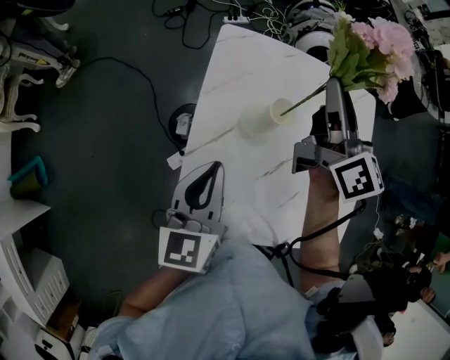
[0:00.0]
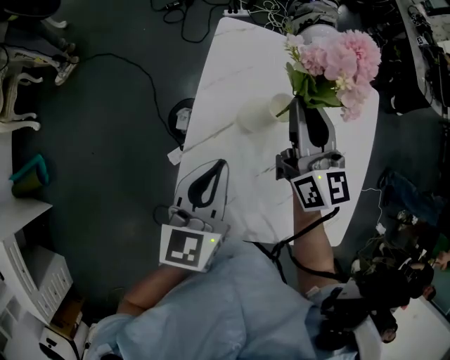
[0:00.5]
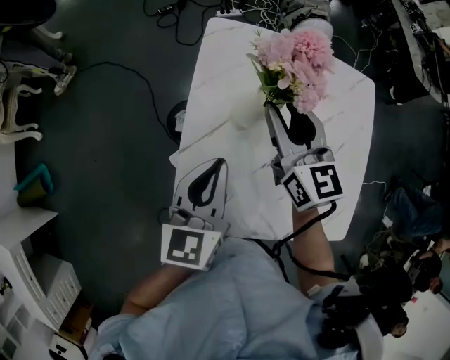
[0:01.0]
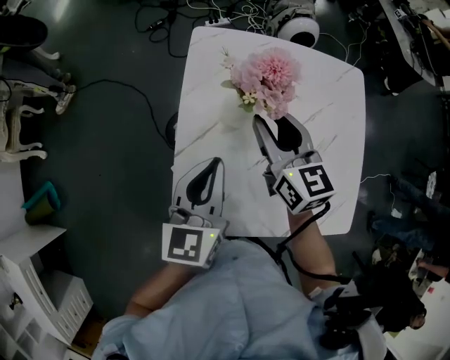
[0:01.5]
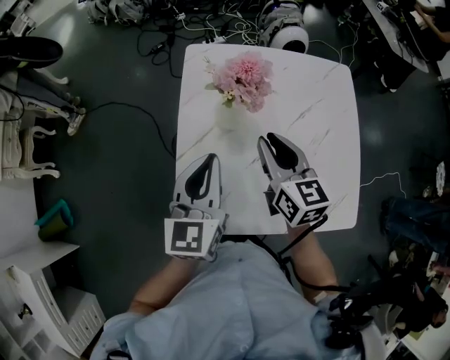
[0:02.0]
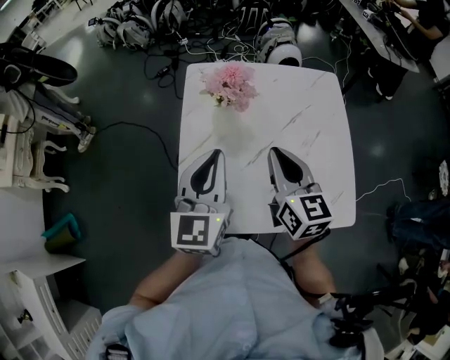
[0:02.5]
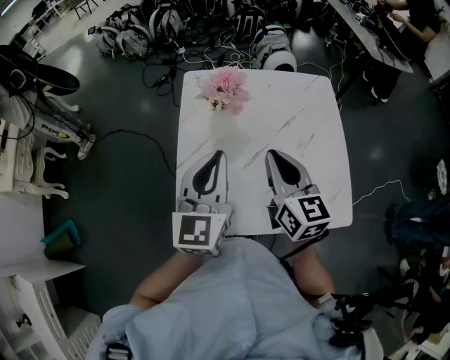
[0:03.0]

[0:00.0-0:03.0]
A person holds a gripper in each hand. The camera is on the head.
0:00.0 to 0:01.5: The right gripper goes about 15 cm downward and backward, swivels roughly 30 degrees, and opens.
0:01.5 to 0:03.0: The left gripper is displaced upward and to the right by some 10 cm; the right gripper goes about 15 cm backward, to the right and upward, and closes its fingers.

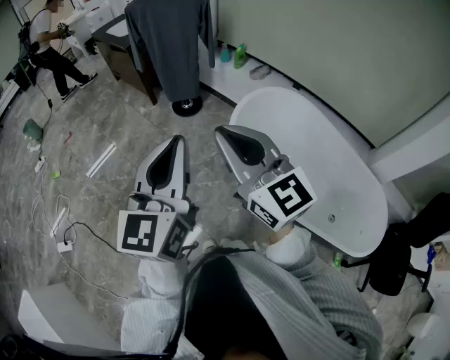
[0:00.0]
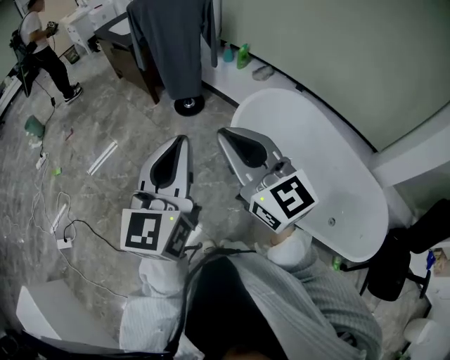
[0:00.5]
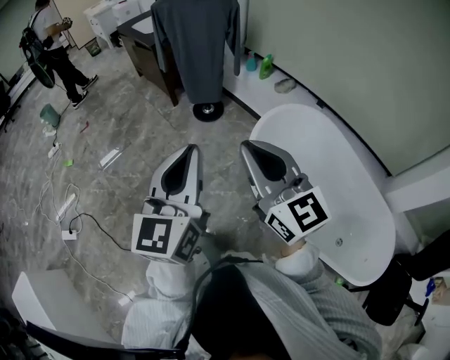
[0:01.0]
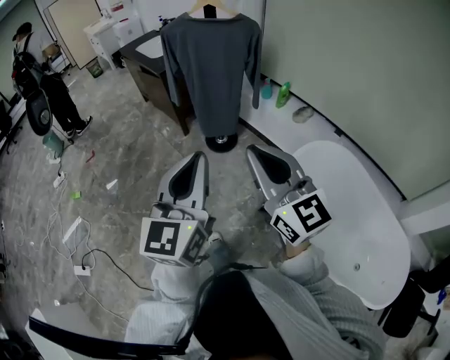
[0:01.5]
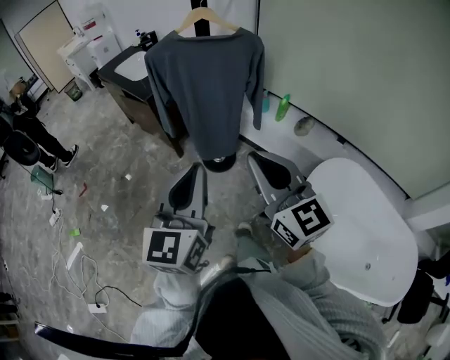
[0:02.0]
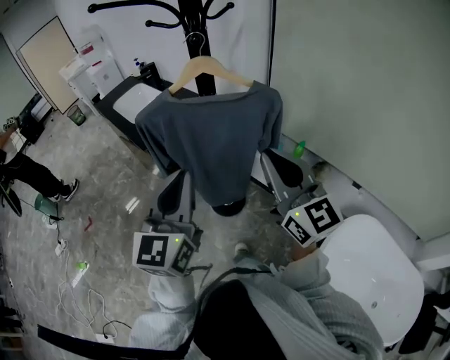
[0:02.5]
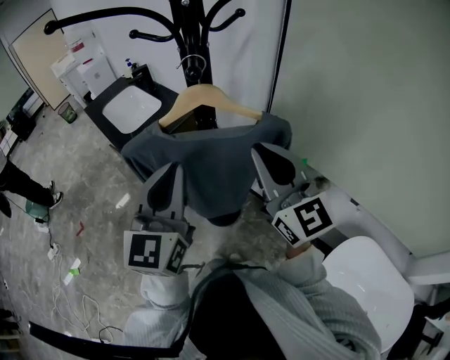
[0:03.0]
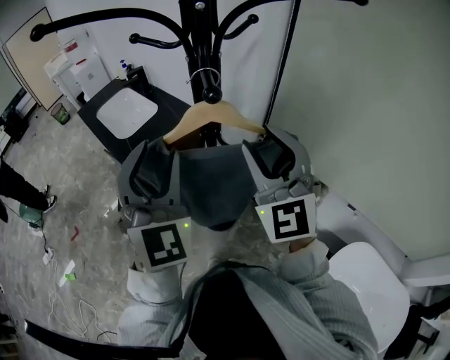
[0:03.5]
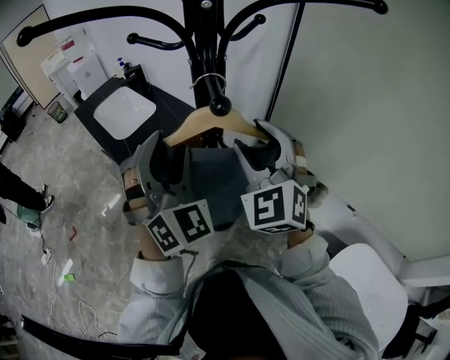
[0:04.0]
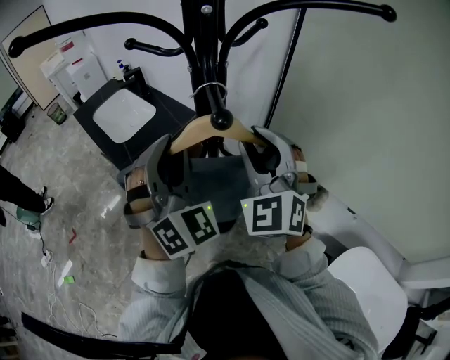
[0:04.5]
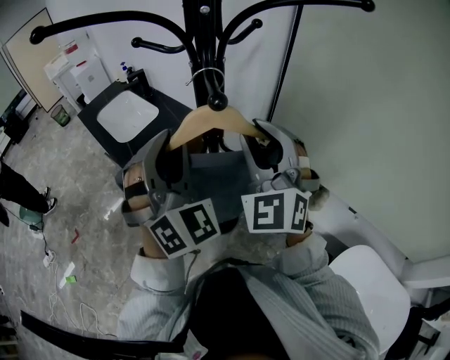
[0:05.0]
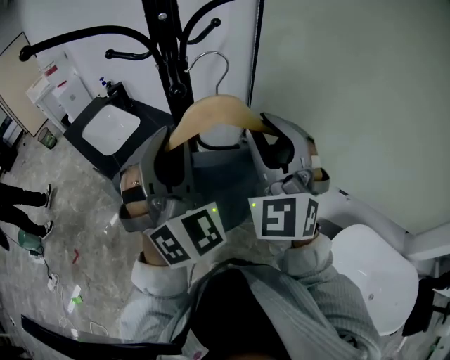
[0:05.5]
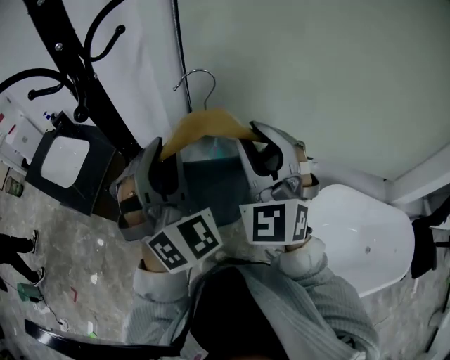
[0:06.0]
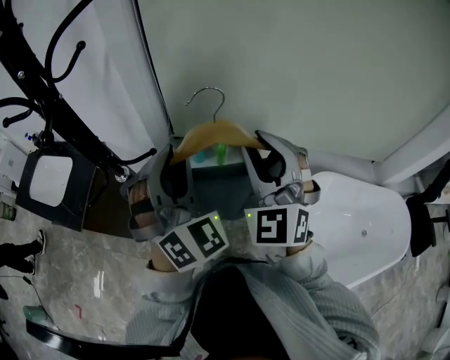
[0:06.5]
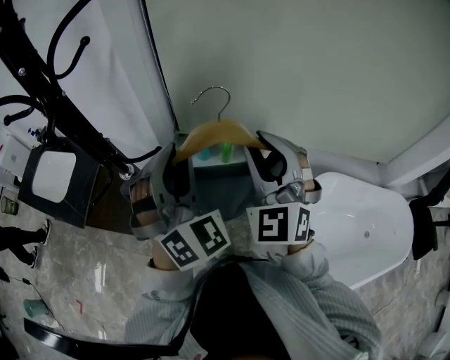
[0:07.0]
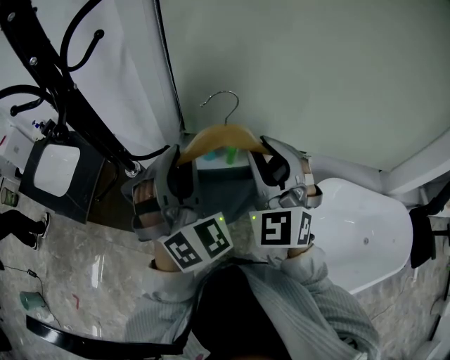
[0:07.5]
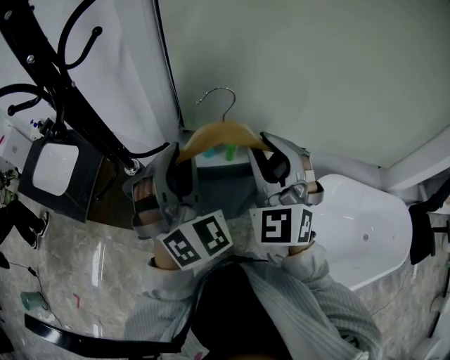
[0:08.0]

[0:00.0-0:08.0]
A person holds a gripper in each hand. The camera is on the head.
0:00.0 to 0:02.0: Both grippers are carried forward, about 50 cm.
0:02.0 to 0:04.0: Both grippers are carried forward, approximately 50 cm. The left gripper rolls clockwise, seen from behind, by about 60 degrees, and opens. The right gripper twists about 40 degrees counterclockwise, seen from behind, and opens up.
0:04.0 to 0:06.0: Both grippers travel together to the right and backward, approximately 20 cm. The right gripper changes its angle by approximately 30 degrees. Meanwhile the left gripper changes its angle by roughly 20 degrees, and closes.
0:06.0 to 0:08.0: The right gripper shifts by roughly 5 cm. The left gripper ends up approximately 5 cm from where it was.

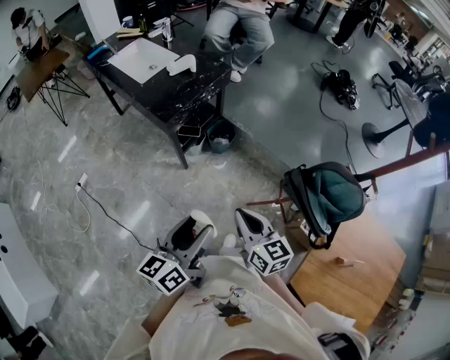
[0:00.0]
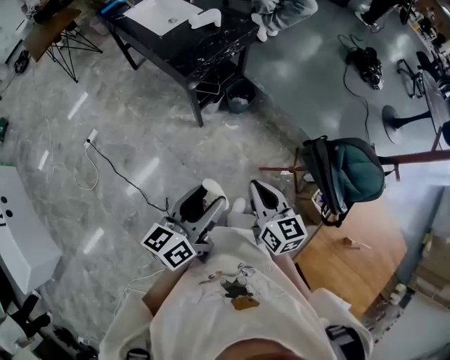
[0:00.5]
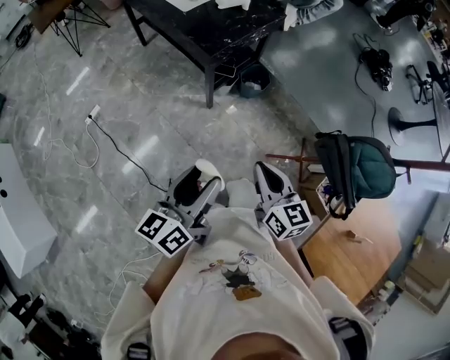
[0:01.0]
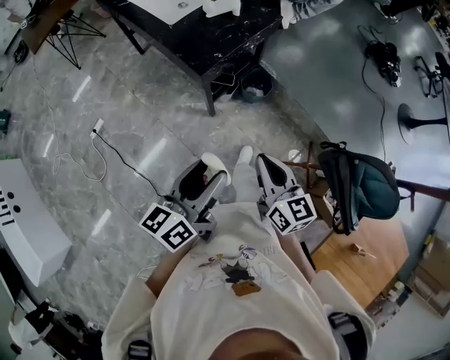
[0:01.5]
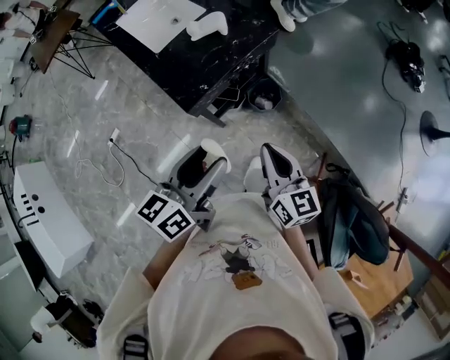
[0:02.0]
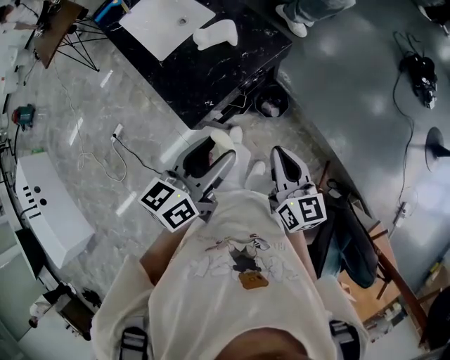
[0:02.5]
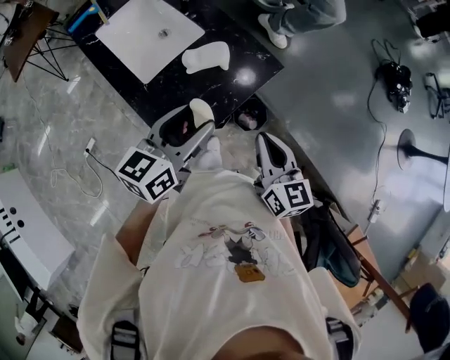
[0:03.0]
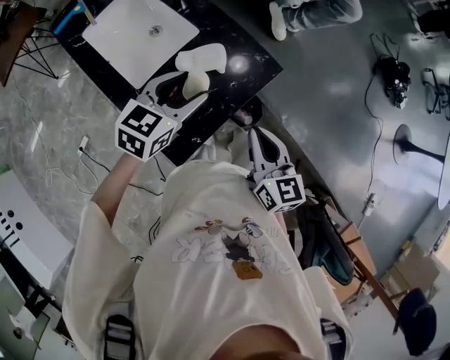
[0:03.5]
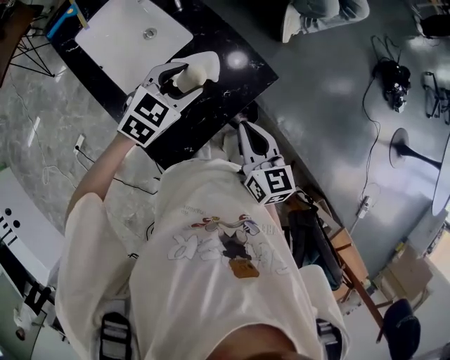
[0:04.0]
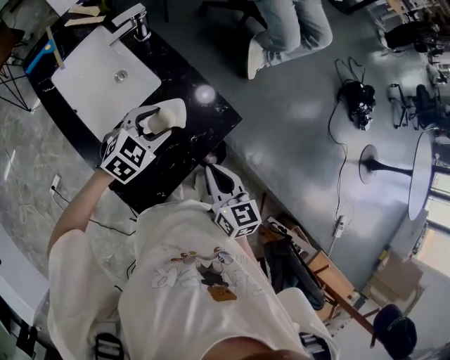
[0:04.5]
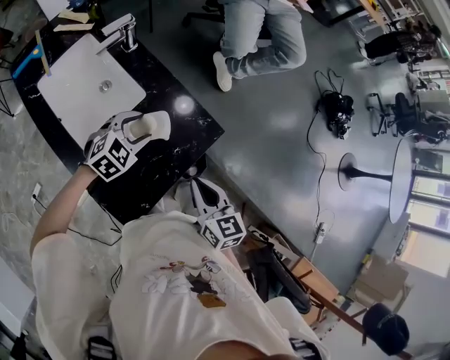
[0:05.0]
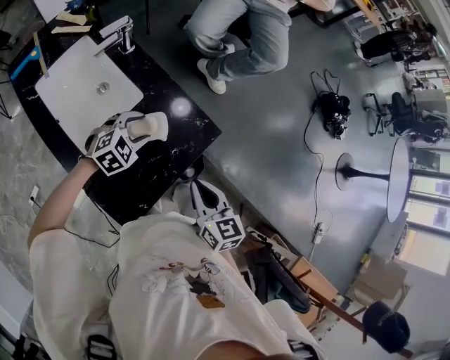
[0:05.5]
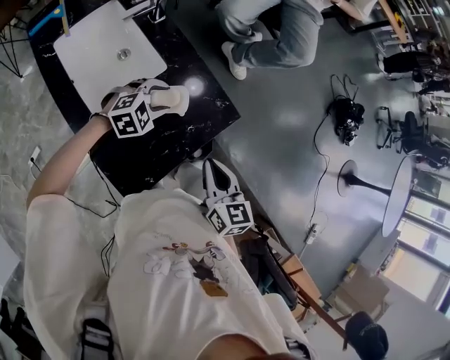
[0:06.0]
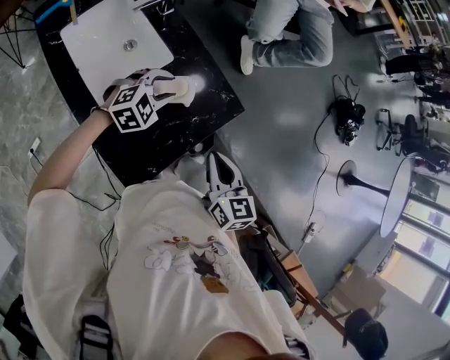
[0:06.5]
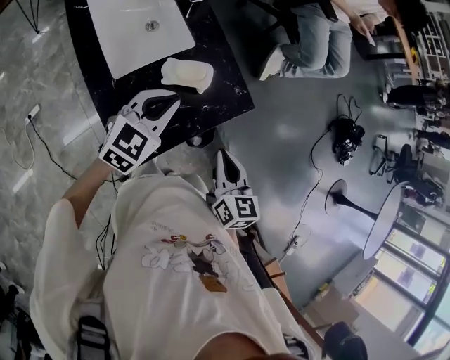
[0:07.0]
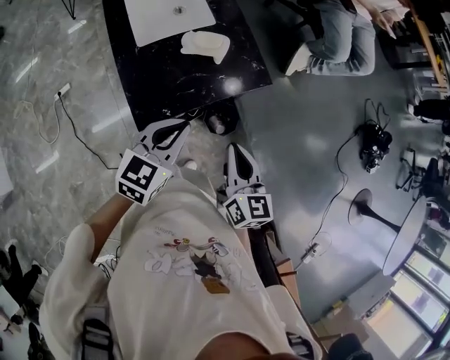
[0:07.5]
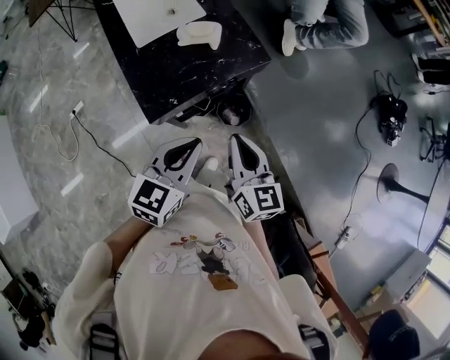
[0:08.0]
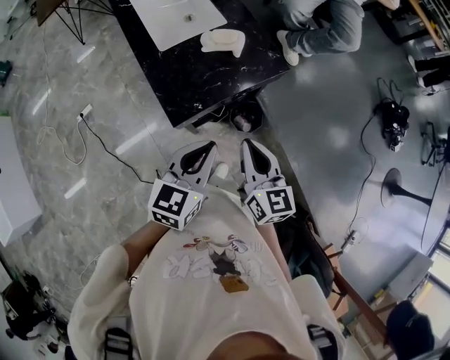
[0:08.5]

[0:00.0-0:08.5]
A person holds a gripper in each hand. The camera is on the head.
0:00.0 to 0:02.0: Both grippers move forward, roughly 35 cm.
0:02.0 to 0:04.0: The two grippers go about 40 cm forward. The left gripper rotates around the line of its fingers by approximately 50 degrees, clockwise from behind.
0:04.0 to 0:06.5: The left gripper shifts roughly 5 cm downward, and turns by some 20 degrees.
0:06.5 to 0:08.5: The left gripper heads backward, covering approximately 35 cm, rotates around the line of its fingers by roughly 50 degrees, counterclockwise from behind, and closes up. Meanwhile the right gripper shifts about 20 cm backward.

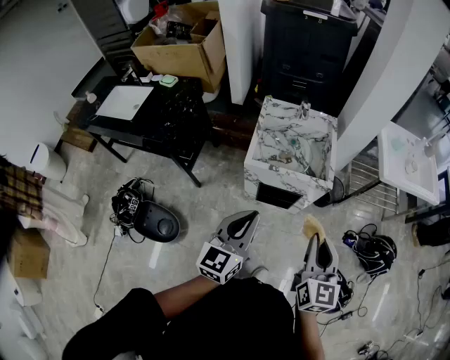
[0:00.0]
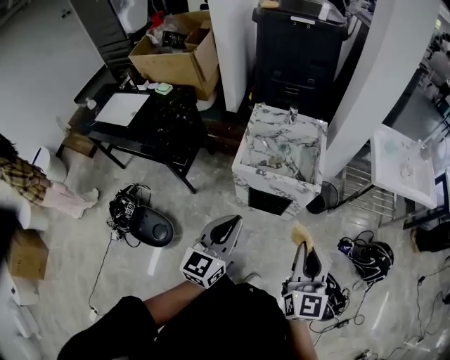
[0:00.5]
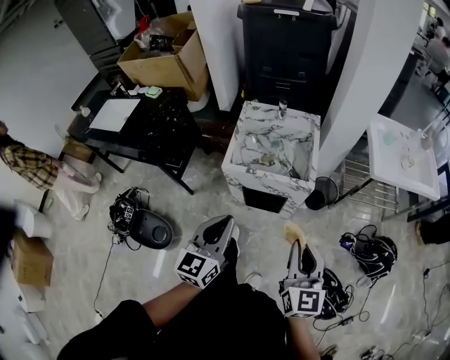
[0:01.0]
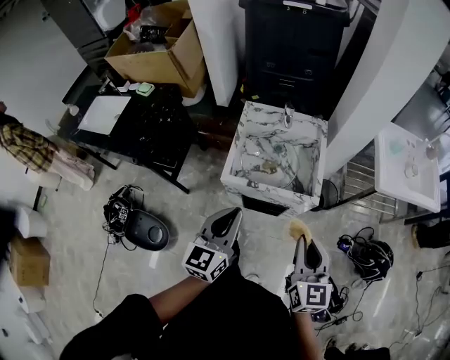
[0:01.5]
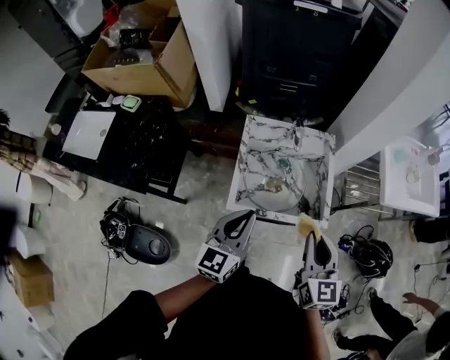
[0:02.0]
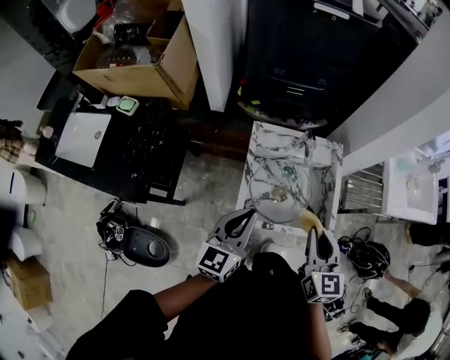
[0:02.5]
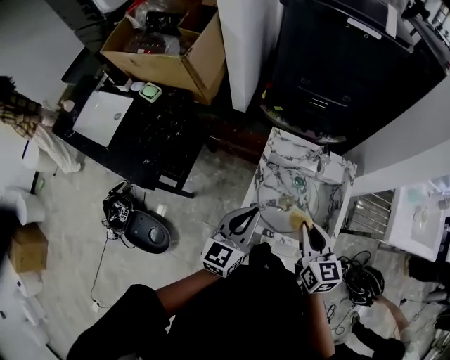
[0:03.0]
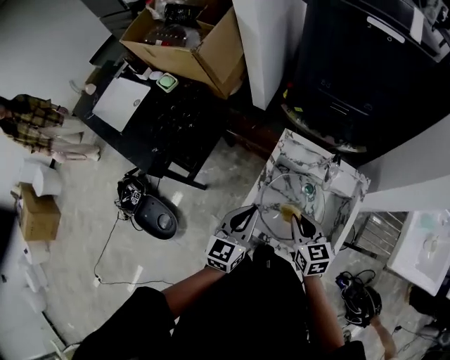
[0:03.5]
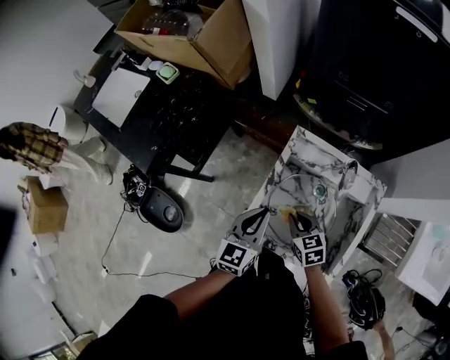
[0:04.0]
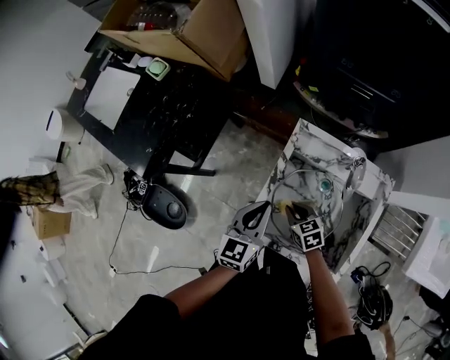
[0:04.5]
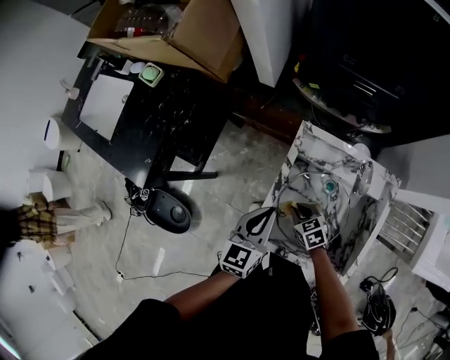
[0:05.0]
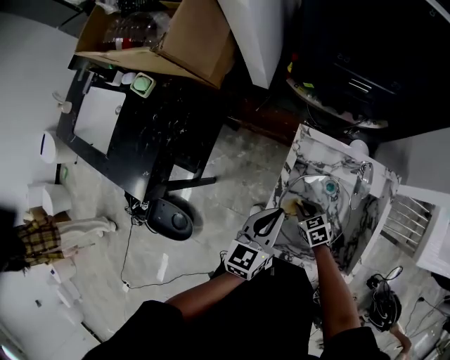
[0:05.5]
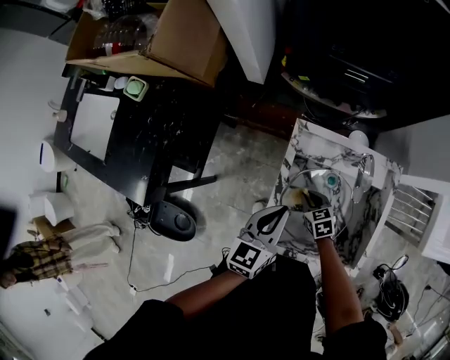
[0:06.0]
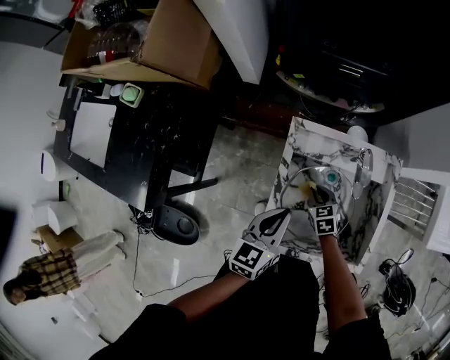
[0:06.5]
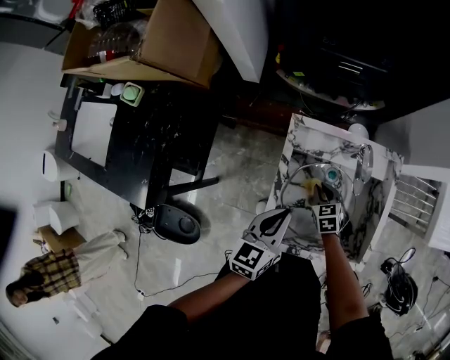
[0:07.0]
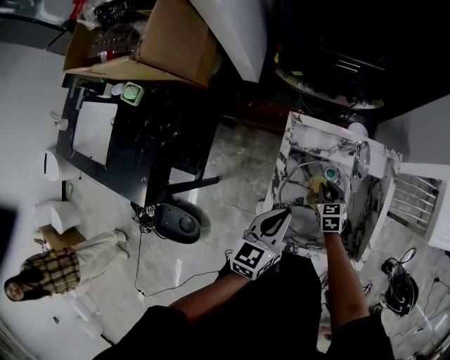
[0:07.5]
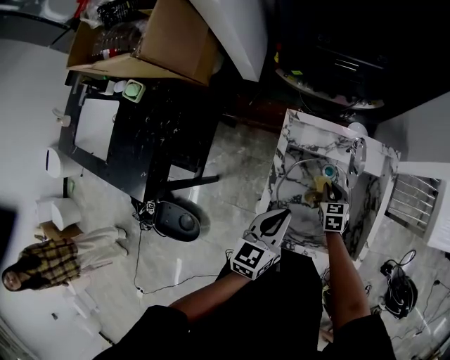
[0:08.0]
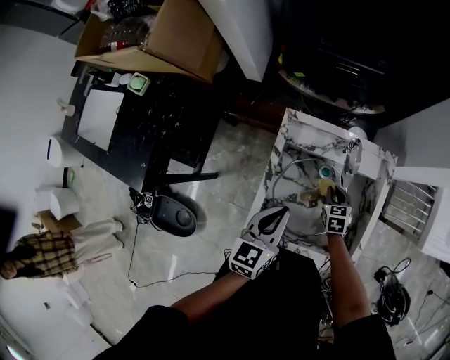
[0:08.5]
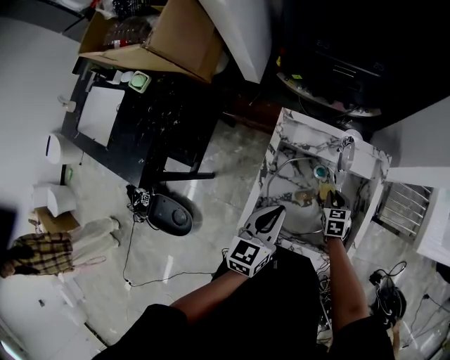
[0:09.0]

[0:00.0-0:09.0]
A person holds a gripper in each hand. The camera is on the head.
0:00.0 to 0:02.0: The two grippers go approximately 25 cm forward.
0:02.0 to 0:04.5: The right gripper moves downward, roughly 35 cm, and points its fingers some 30 degrees further downward; the left gripper shifts by some 25 cm, and changes its angle by approximately 20 degrees.
0:04.5 to 0:07.0: The right gripper changes place by some 10 cm, and turns by approximately 30 degrees.
0:07.0 to 0:09.0: The left gripper changes place by approximately 5 cm. Meanwhile the right gripper travels to the right by approximately 10 cm.
